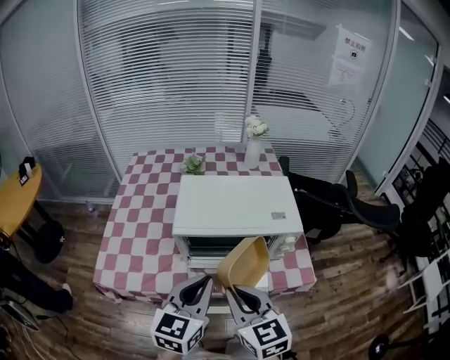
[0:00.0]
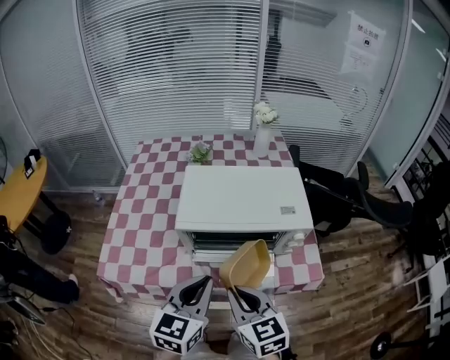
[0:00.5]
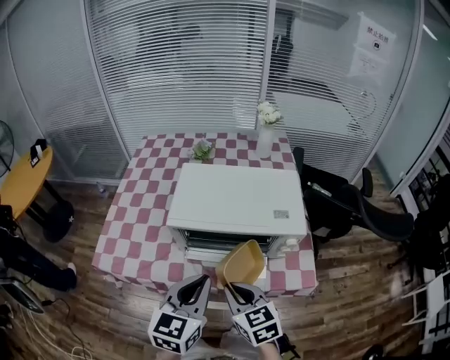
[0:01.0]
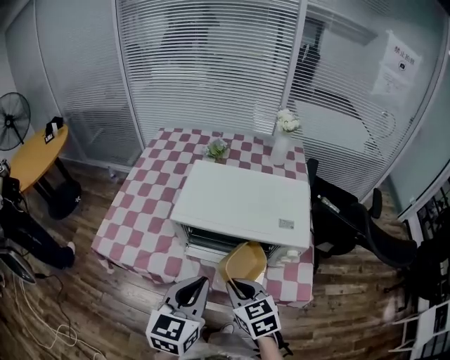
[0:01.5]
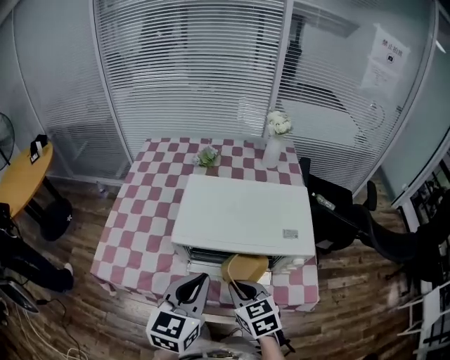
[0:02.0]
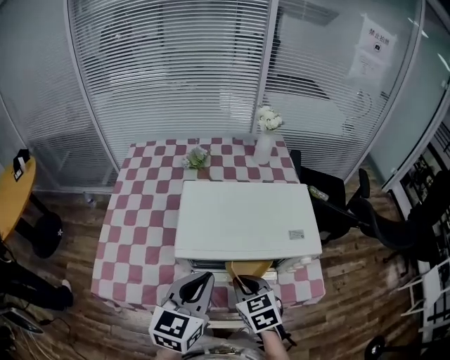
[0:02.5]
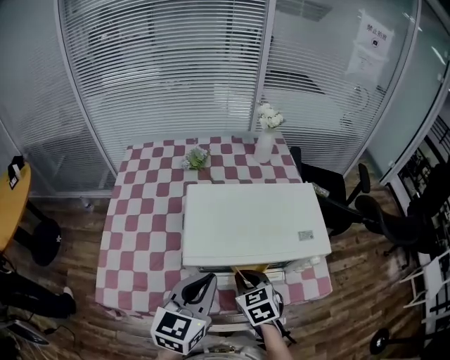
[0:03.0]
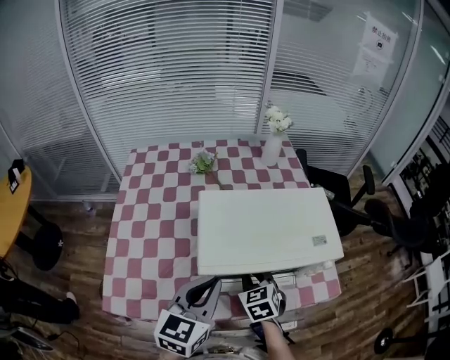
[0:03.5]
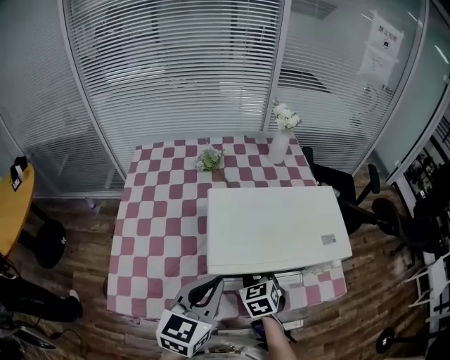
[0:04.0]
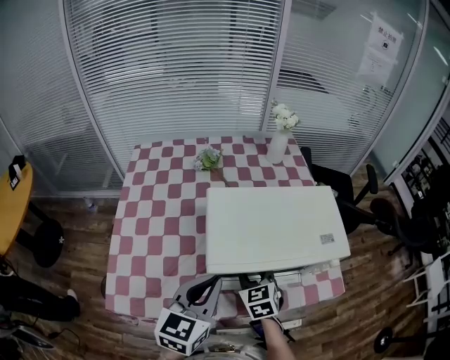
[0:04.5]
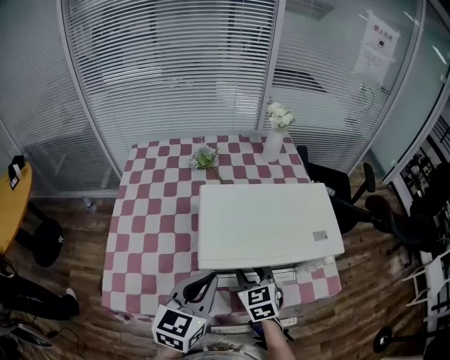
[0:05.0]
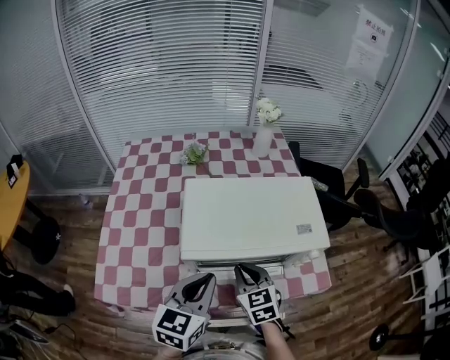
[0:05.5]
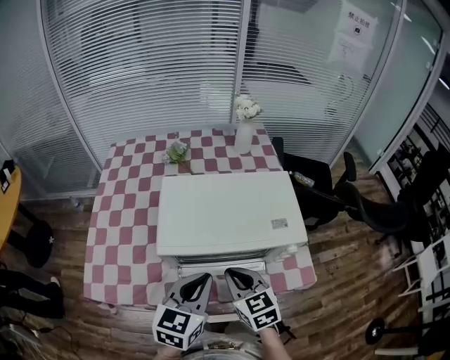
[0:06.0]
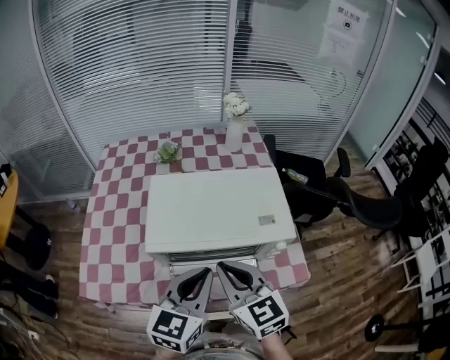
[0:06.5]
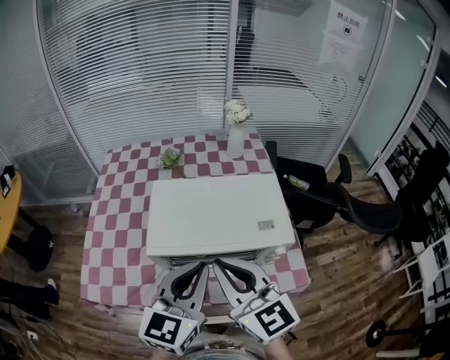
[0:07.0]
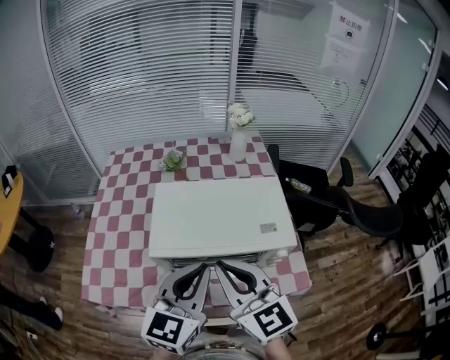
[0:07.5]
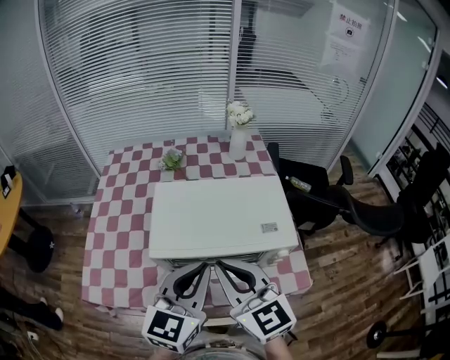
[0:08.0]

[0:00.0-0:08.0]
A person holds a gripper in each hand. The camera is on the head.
0:00.0 to 0:02.0: The right gripper moves downward and forward, about 15 cm, and rotates approximately 20 degrees. Meanwhile the left gripper goes some 5 cm forward.
0:02.0 to 0:04.0: The right gripper moves forward, to the left and downward, some 15 cm, and rotates about 20 degrees. Meanwhile the left gripper goes some 10 cm to the left and forward.
0:04.0 to 0:06.0: The left gripper shifts approximately 10 cm to the right; the right gripper travels backward, to the right and upward by roughly 15 cm, swivels some 20 degrees, and opens, then closes again.
0:06.0 to 0:08.0: The left gripper goes some 10 cm upward, while the right gripper is displaced upward by approximately 15 cm, and swivels roughly 20 degrees.

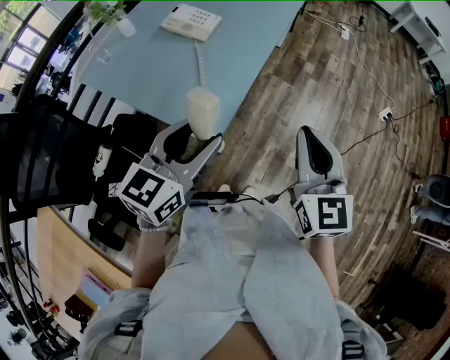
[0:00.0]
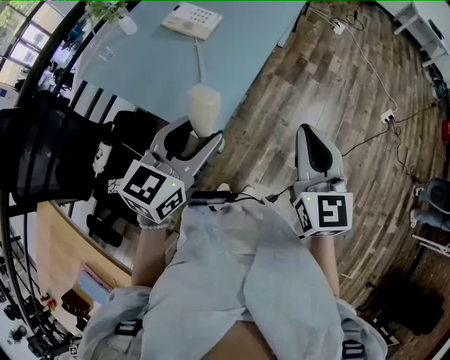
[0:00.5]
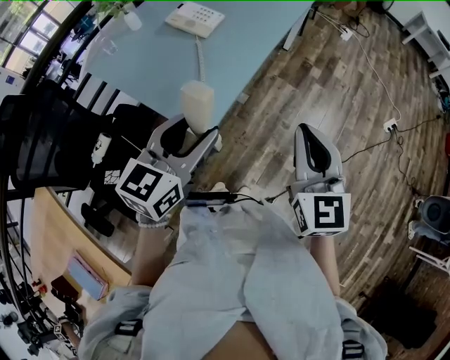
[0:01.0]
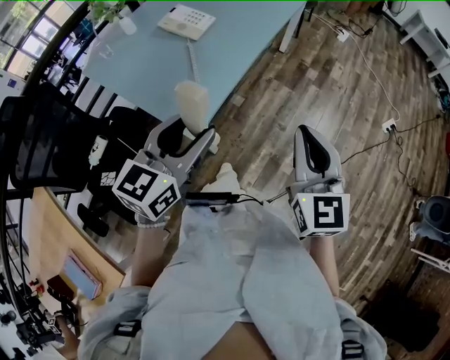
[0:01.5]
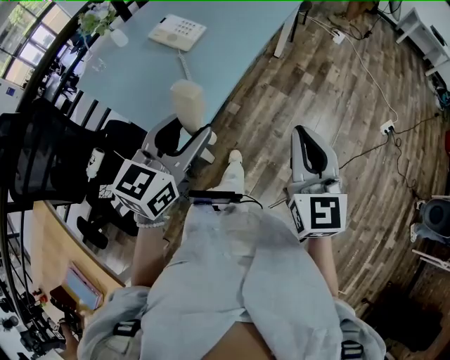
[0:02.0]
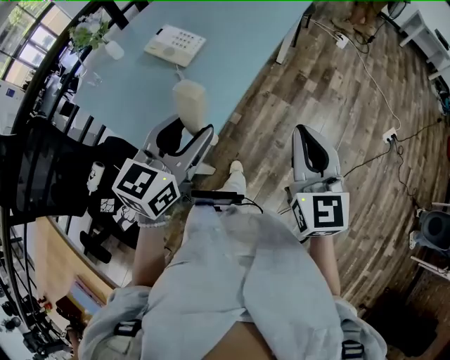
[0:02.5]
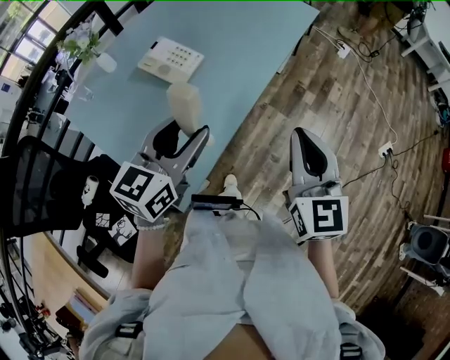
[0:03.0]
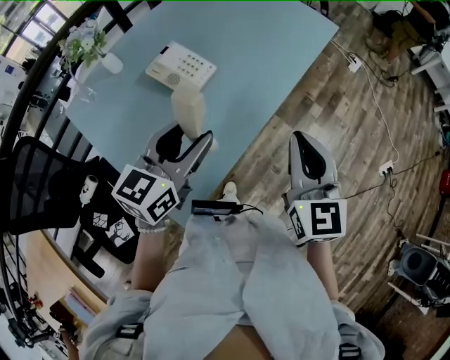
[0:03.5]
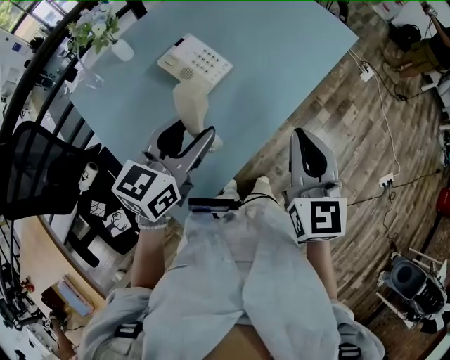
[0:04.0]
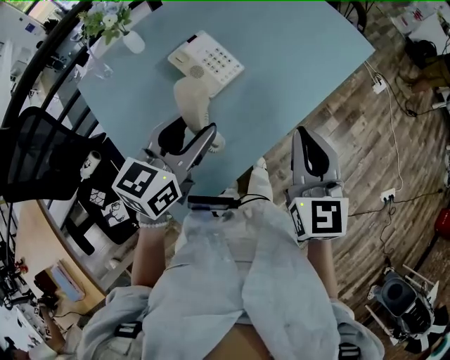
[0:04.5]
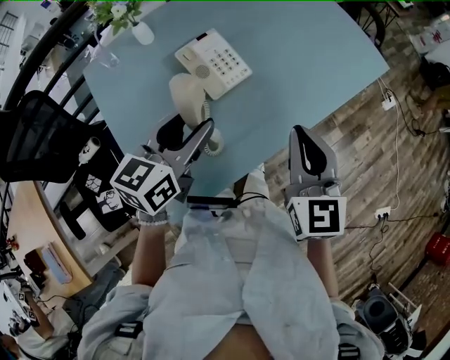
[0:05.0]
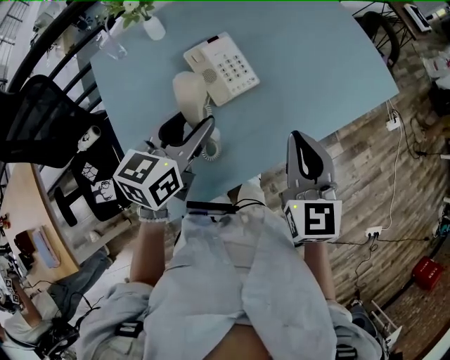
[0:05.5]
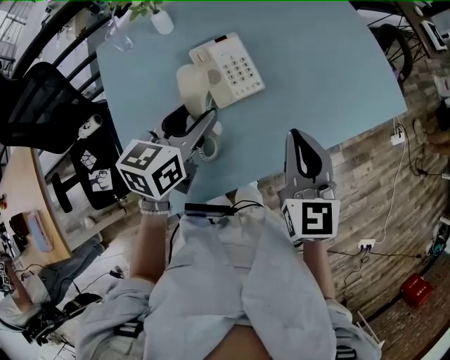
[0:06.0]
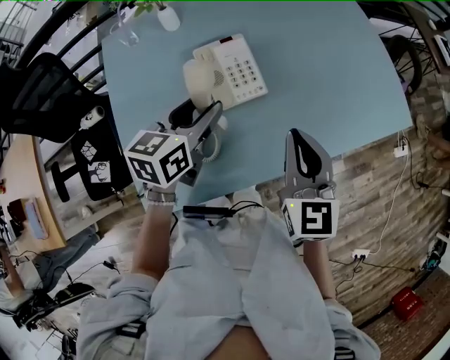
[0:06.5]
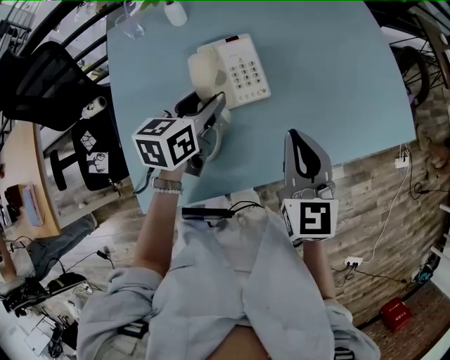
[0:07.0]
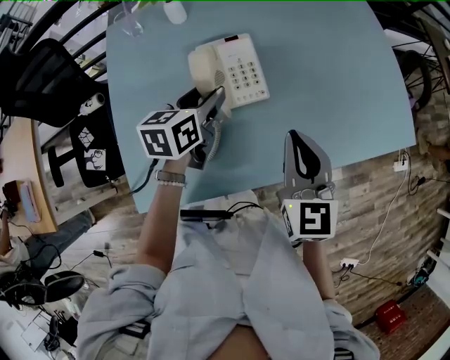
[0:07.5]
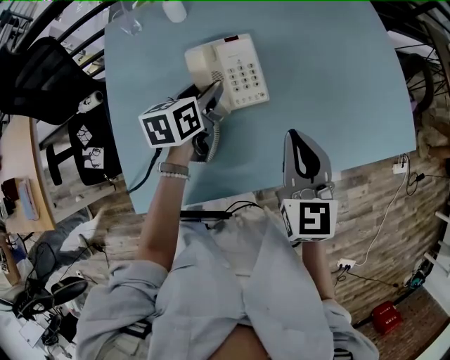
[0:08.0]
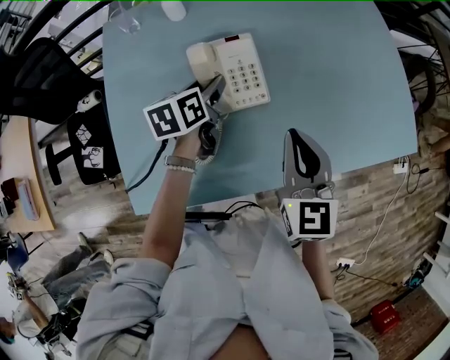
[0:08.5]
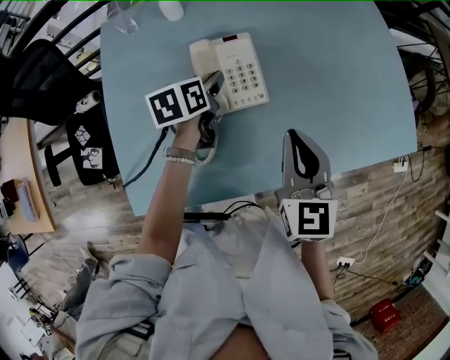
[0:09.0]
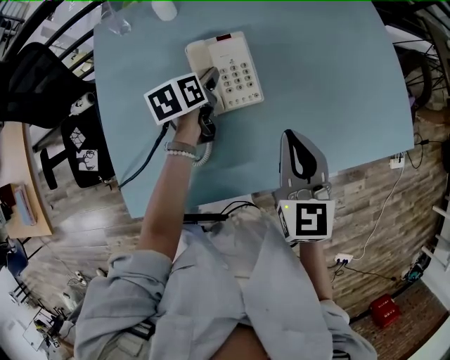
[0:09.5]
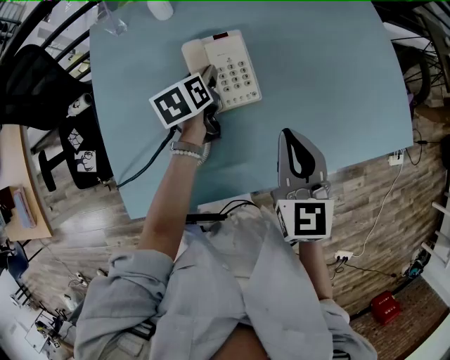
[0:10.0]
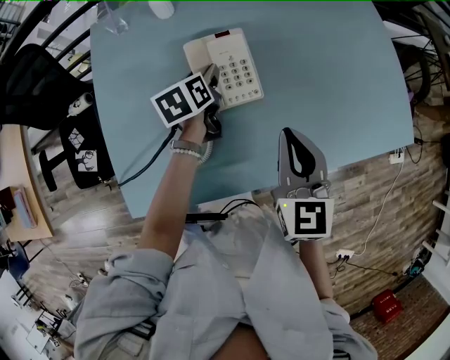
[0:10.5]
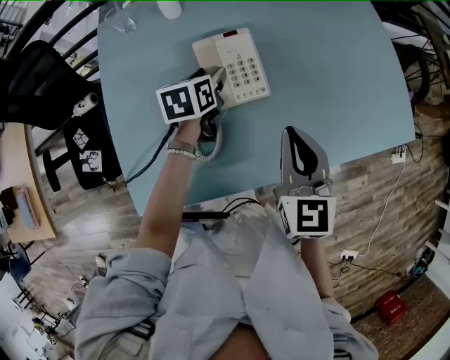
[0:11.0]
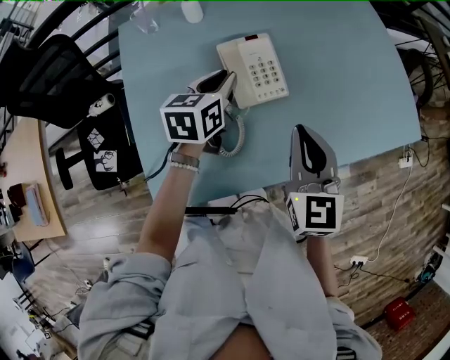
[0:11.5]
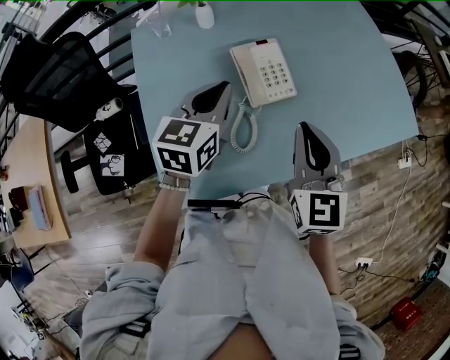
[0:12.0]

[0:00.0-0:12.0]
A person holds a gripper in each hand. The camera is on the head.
0:00.0 to 0:02.0: The grippers both shift to the right by about 10 cm.
0:02.0 to 0:04.0: Both grippers travel together forward, about 30 cm.
0:04.0 to 0:06.0: Both grippers move forward, approximately 10 cm. The right gripper changes its angle by about 20 degrees. The left gripper rotates about 30 degrees.
0:06.0 to 0:08.0: The right gripper moves forward, some 5 cm. The left gripper shifts roughly 15 cm downward and forward, and turns by roughly 30 degrees.
0:08.0 to 0:10.0: The left gripper heads downward, covering some 5 cm.
0:10.0 to 0:12.0: The right gripper travels to the left, backward and upward by roughly 15 cm; the left gripper goes about 20 cm upward and backward, rotates approximately 40 degrees, and closes its fingers.

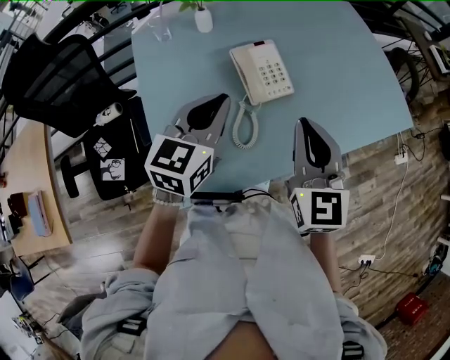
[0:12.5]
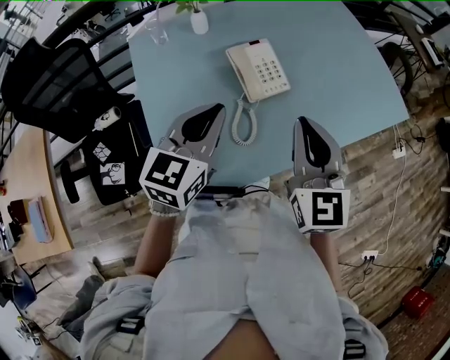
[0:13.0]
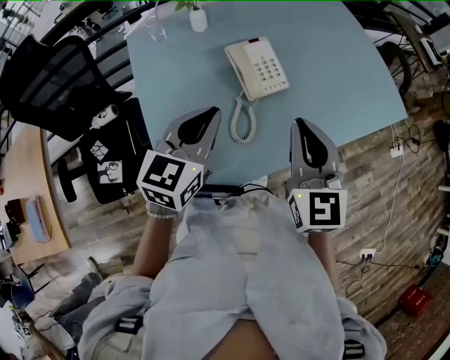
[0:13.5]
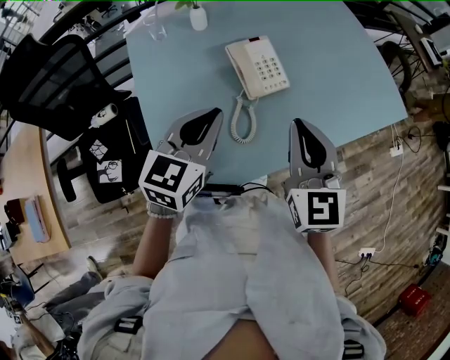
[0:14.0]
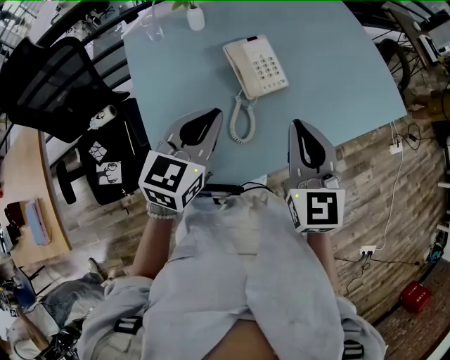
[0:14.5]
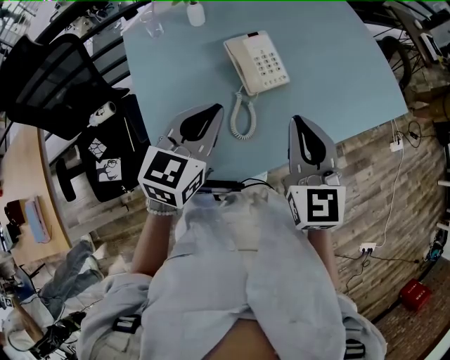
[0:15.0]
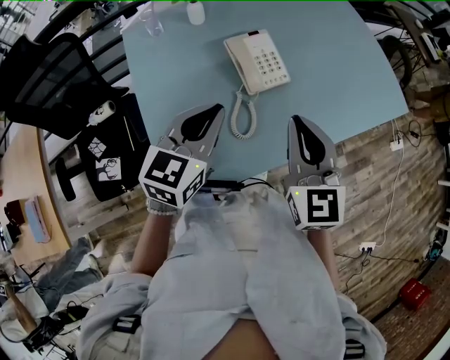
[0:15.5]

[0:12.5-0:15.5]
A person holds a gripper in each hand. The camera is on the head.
0:12.5 to 0:14.0: The grippers make only small movements.
0:14.0 to 0:15.5: Neither gripper changes place.

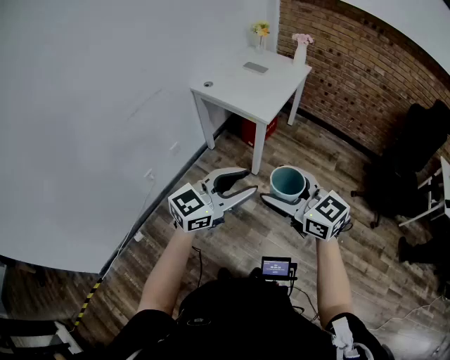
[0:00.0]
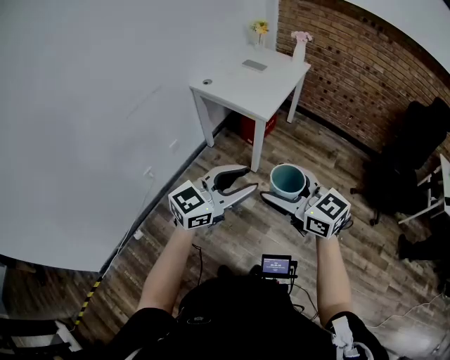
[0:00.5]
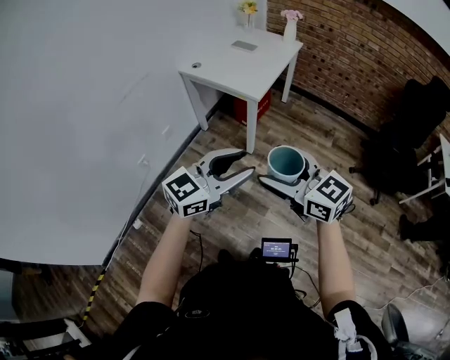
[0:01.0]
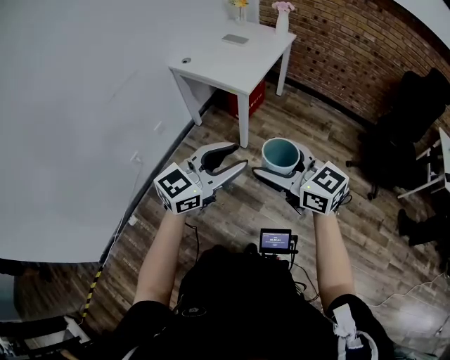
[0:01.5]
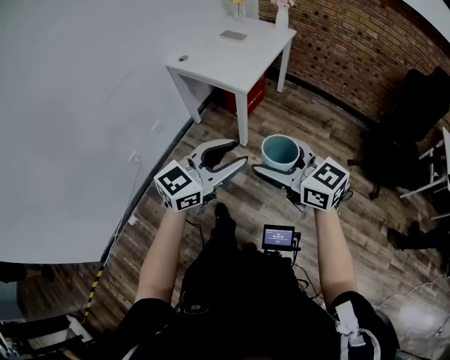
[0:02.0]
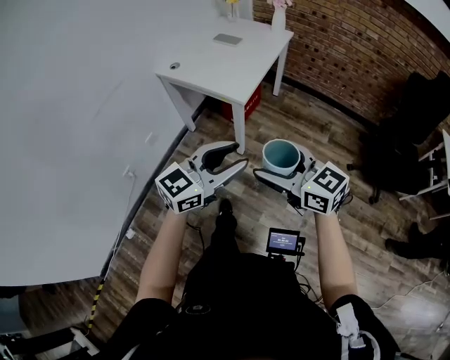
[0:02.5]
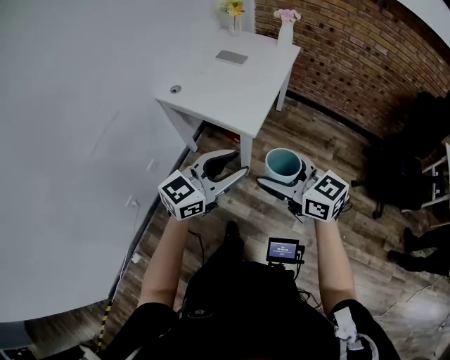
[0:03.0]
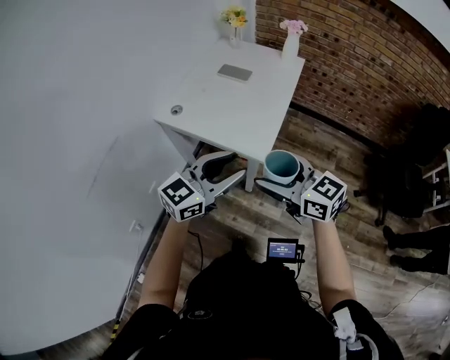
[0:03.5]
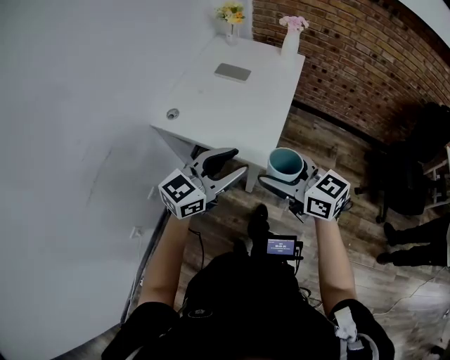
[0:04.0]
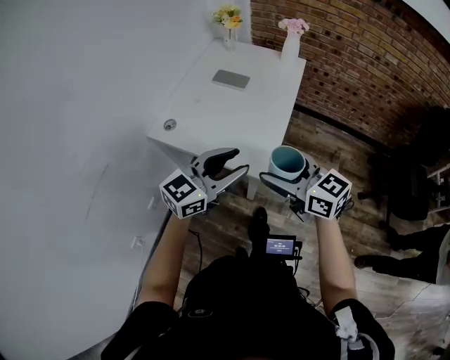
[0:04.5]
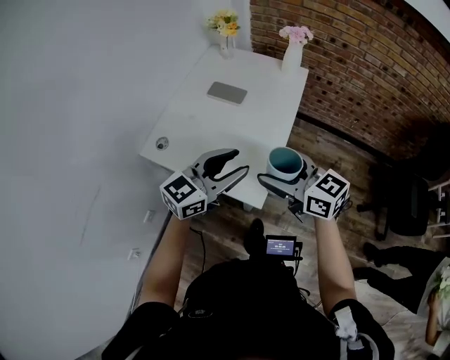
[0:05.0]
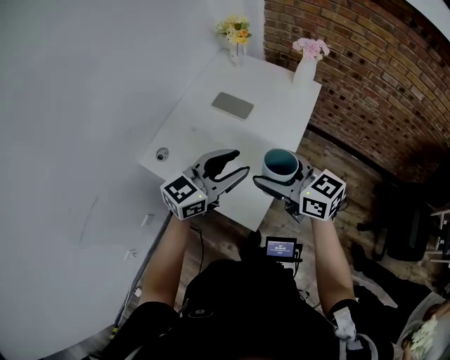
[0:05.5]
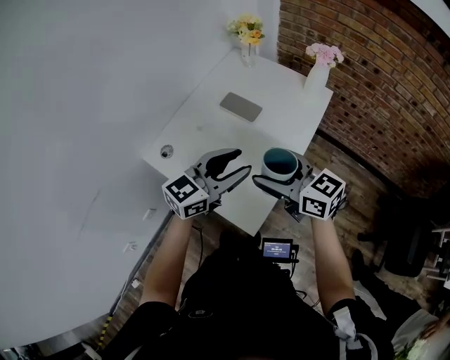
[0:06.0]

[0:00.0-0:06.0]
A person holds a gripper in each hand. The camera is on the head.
0:00.0 to 0:02.0: The two grippers go approximately 5 cm to the right.
0:02.0 to 0:04.0: Both grippers move forward, about 30 cm.
0:04.0 to 0:06.0: Both grippers travel together forward, approximately 25 cm.
